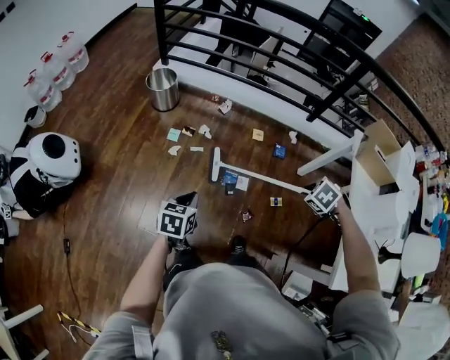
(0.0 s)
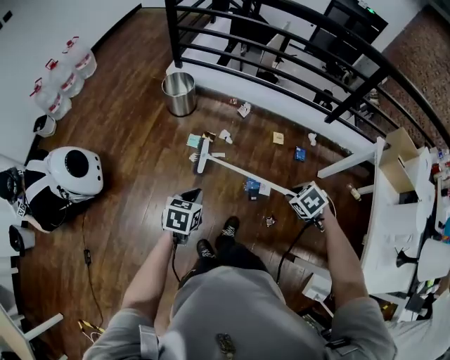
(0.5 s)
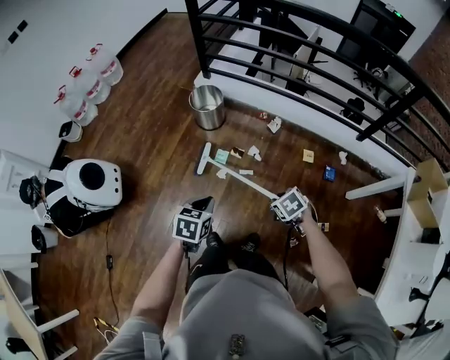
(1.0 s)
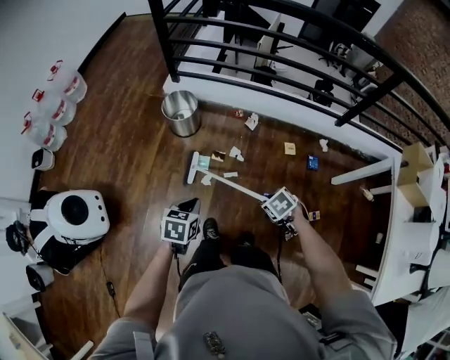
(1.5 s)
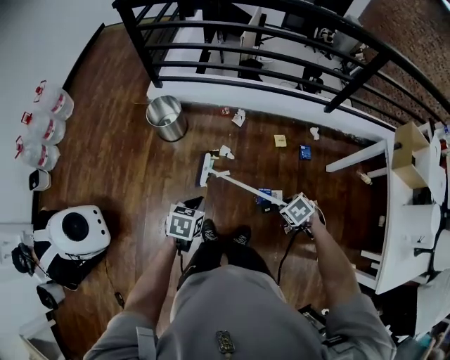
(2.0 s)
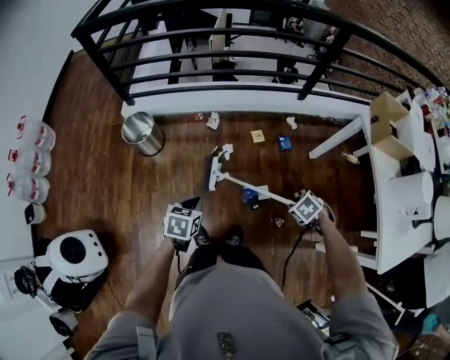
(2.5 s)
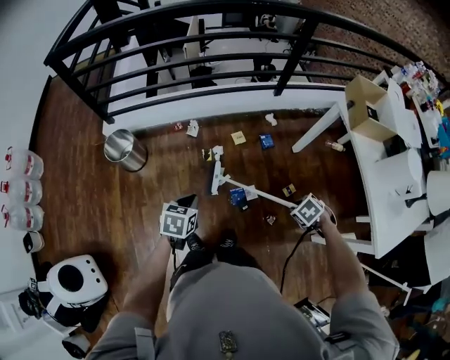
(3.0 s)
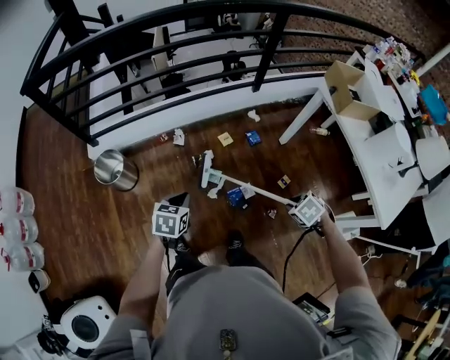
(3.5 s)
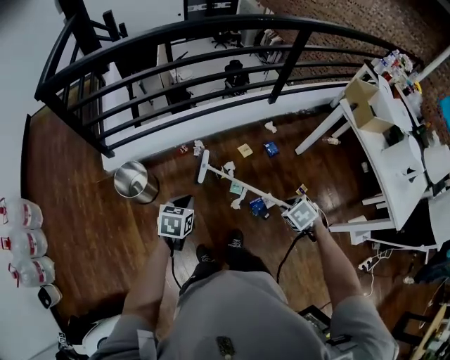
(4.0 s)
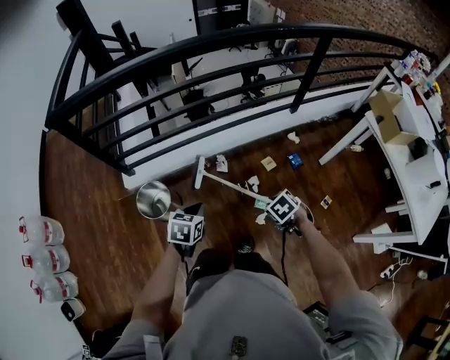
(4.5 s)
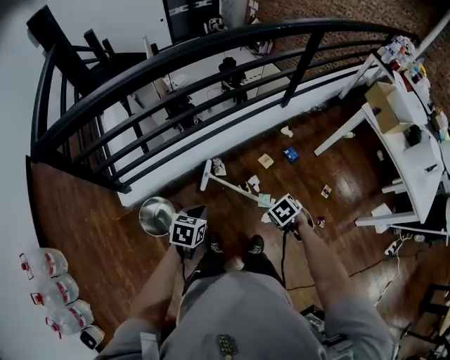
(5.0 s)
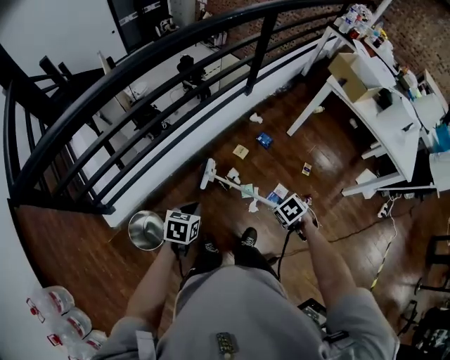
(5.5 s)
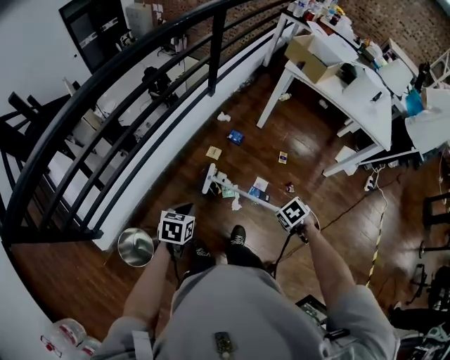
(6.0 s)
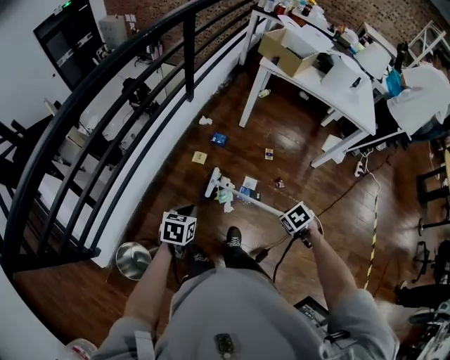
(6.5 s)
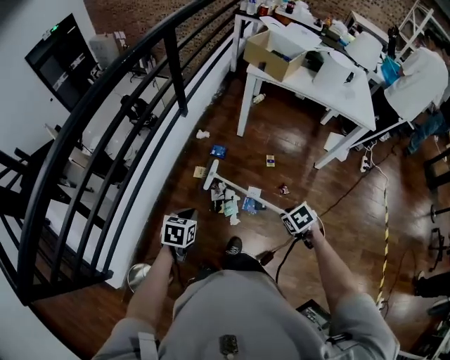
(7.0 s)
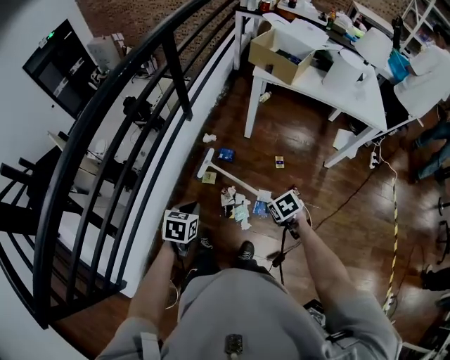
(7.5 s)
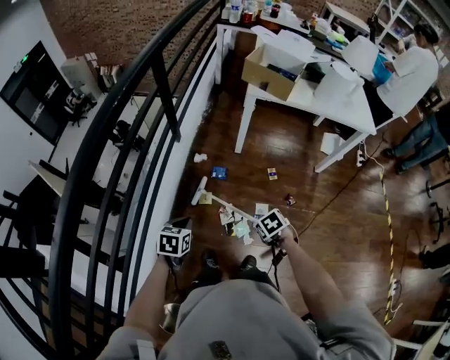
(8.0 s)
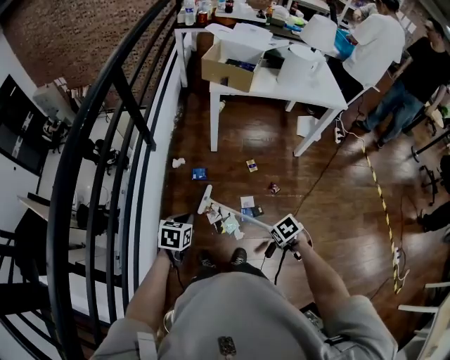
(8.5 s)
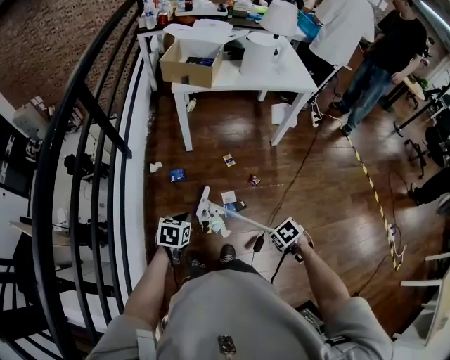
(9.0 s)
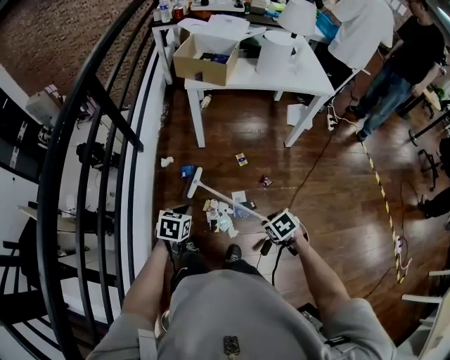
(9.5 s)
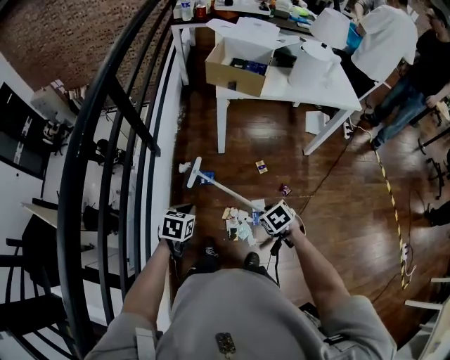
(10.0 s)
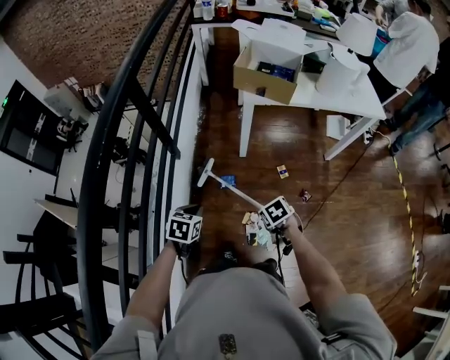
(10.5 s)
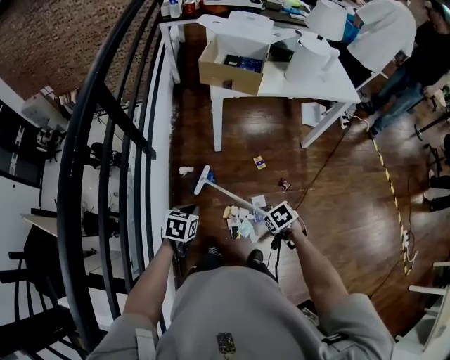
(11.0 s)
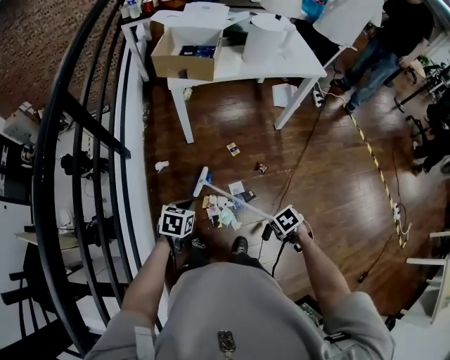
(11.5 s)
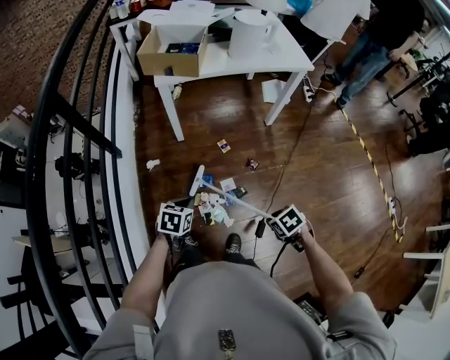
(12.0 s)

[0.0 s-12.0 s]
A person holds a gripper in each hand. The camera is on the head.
0.0 to 2.0 s: The left gripper shifts by about 30 cm.
2.0 to 4.0 s: The left gripper changes place by approximately 20 cm, and changes its angle by roughly 20 degrees.
4.0 to 6.0 s: The left gripper changes place by about 15 cm, and turns by some 40 degrees.
6.0 to 8.0 s: The left gripper shifts by about 30 cm.
8.0 to 10.0 s: The left gripper changes place by about 15 cm.
10.0 to 12.0 s: The left gripper moves some 15 cm.

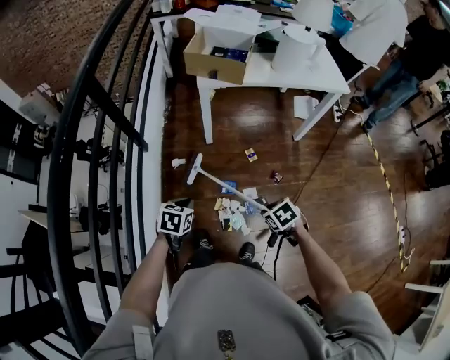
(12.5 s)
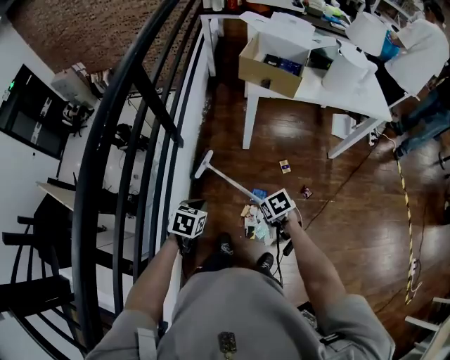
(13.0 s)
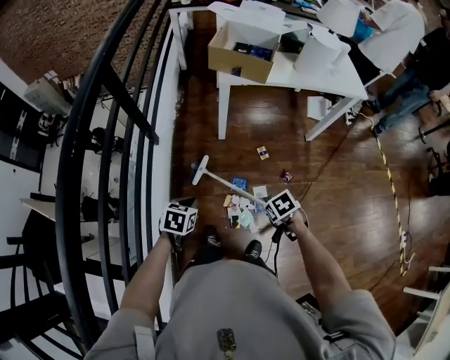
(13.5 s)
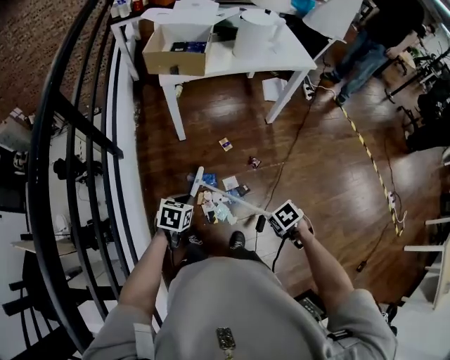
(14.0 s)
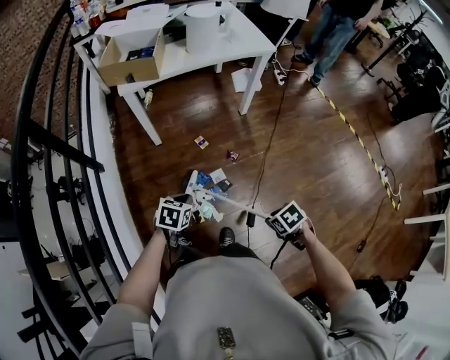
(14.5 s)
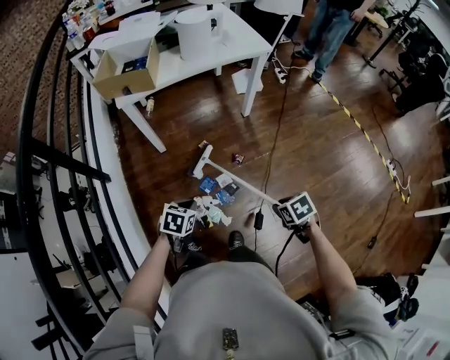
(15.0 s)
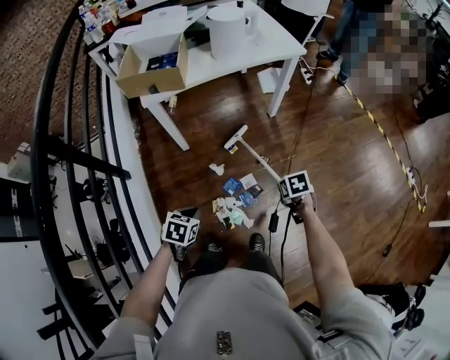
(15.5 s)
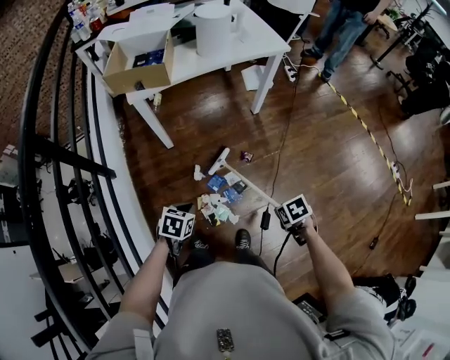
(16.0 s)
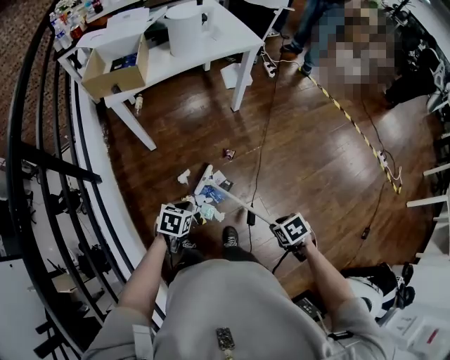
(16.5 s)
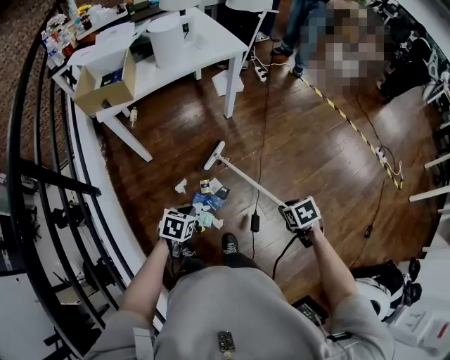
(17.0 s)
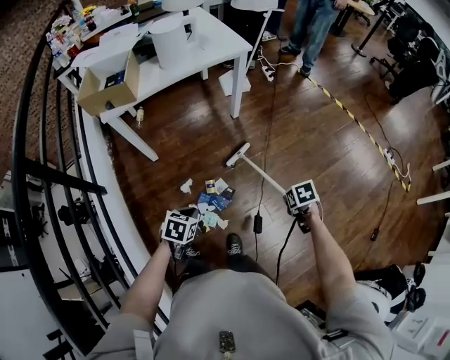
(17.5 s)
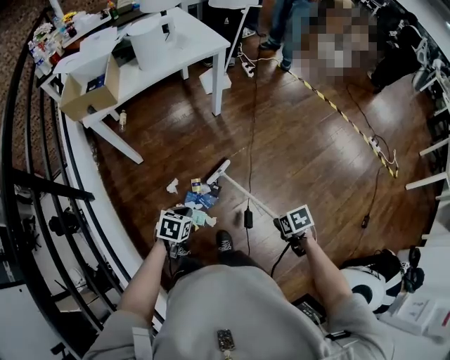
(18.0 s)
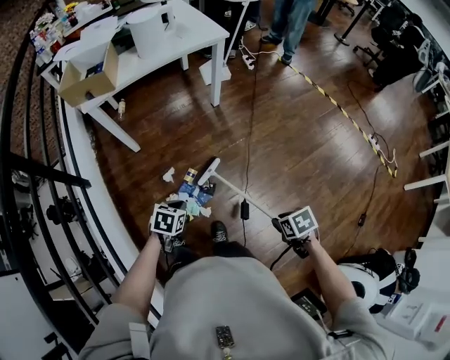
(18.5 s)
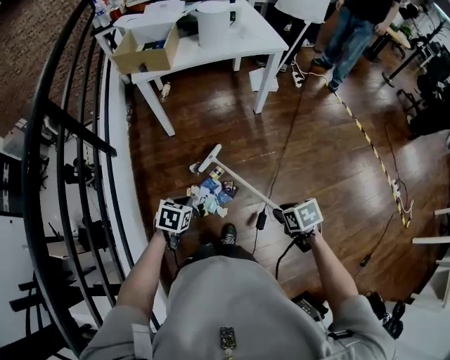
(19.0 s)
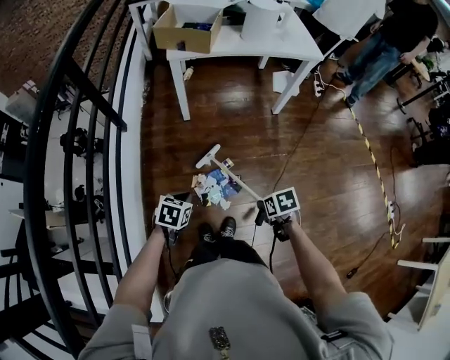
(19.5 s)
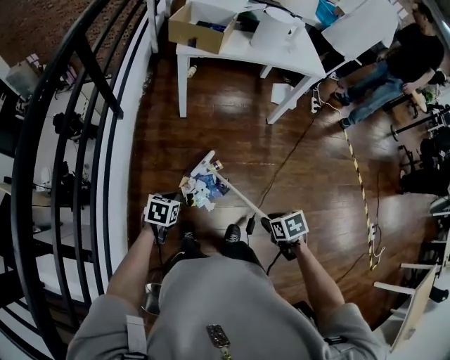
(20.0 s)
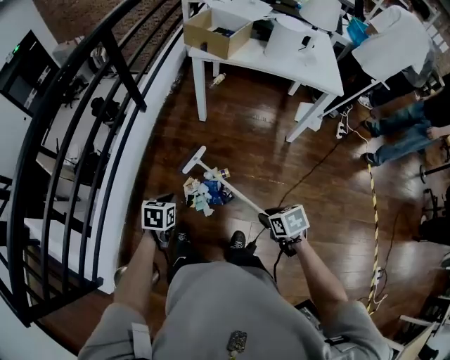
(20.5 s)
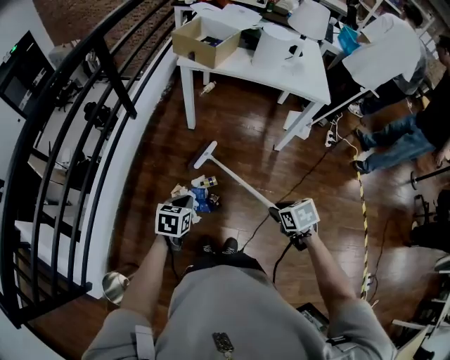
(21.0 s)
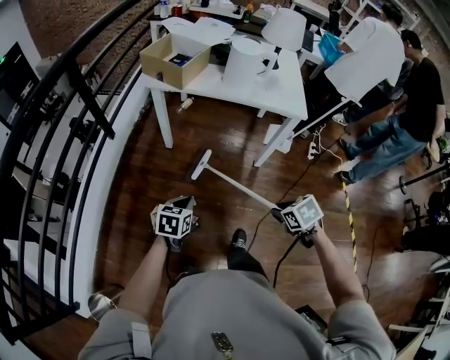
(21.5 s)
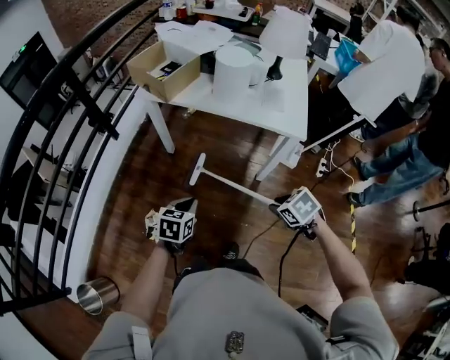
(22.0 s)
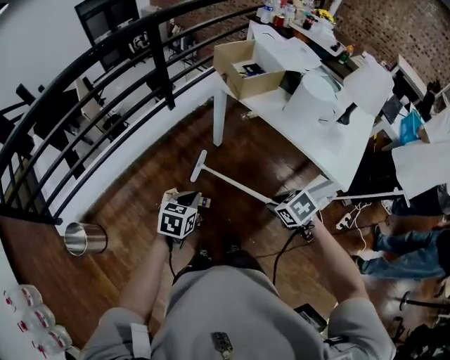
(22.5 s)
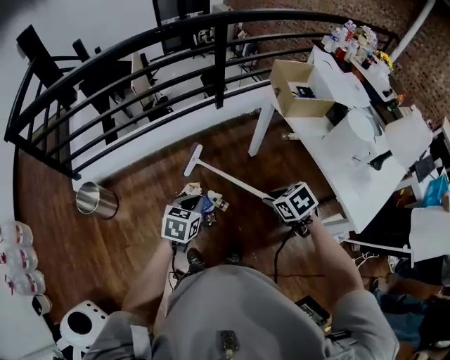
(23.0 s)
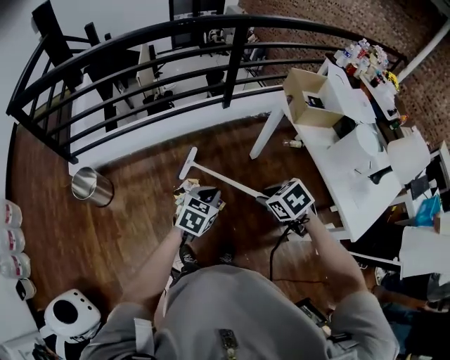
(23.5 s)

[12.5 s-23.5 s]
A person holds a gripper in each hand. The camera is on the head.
12.5 to 14.5 s: The left gripper shifts by approximately 20 cm, and swivels roughly 20 degrees.
14.5 to 16.0 s: The left gripper shifts by roughly 5 cm.
16.0 to 18.0 s: The left gripper changes place by some 15 cm.
18.0 to 20.0 s: The left gripper ends up about 20 cm from where it was, and swivels roughly 30 degrees.
20.0 to 21.5 s: The left gripper shifts by approximately 35 cm.
21.5 to 23.5 s: The left gripper moves upward, about 5 cm, and swivels some 40 degrees.

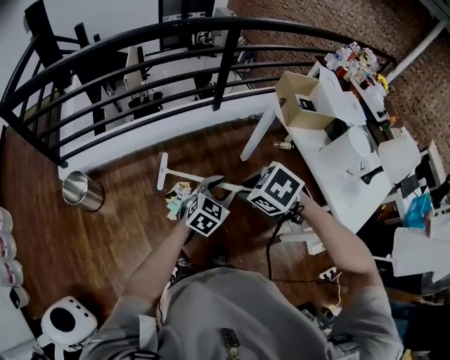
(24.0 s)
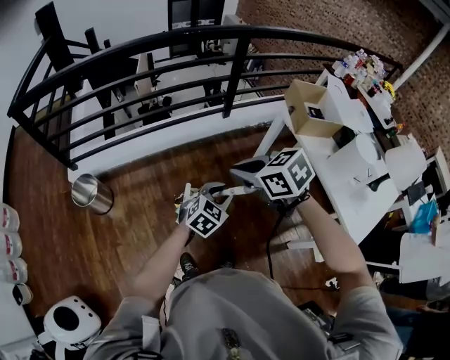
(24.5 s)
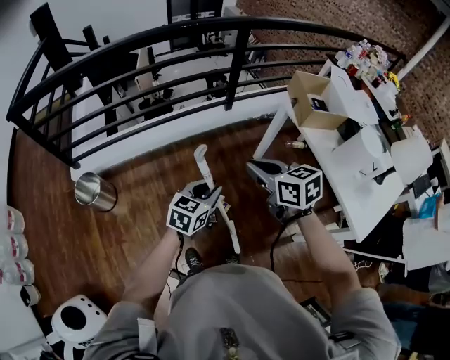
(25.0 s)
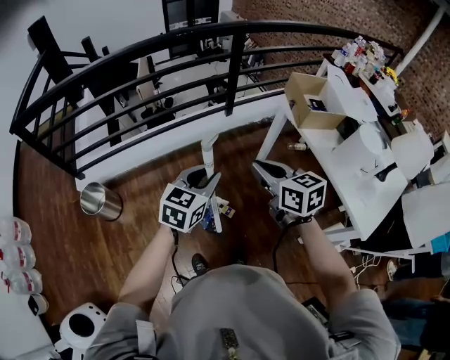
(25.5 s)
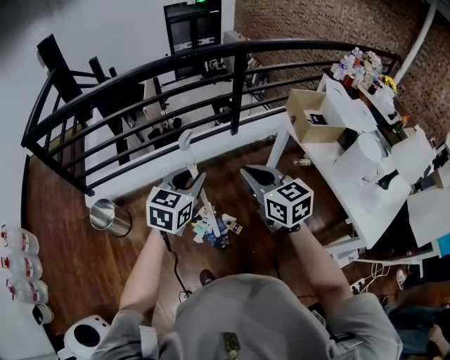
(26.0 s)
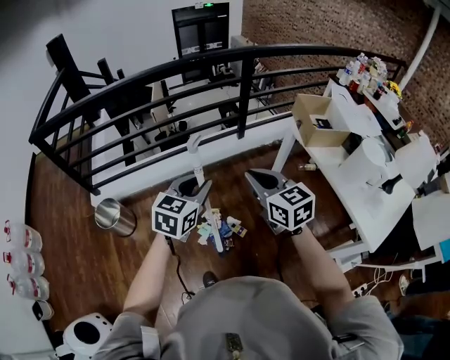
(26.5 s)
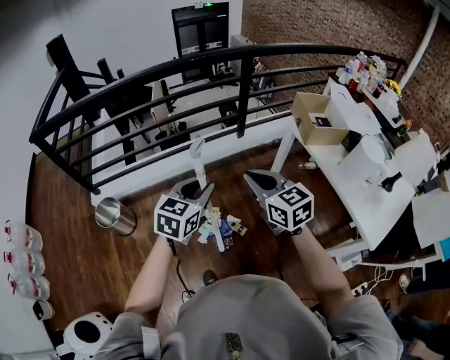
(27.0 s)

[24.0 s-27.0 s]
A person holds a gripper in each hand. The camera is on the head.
24.0 to 25.5 s: The left gripper heads upward, covering roughly 10 cm.
25.5 to 27.0 s: The left gripper changes place by about 5 cm.

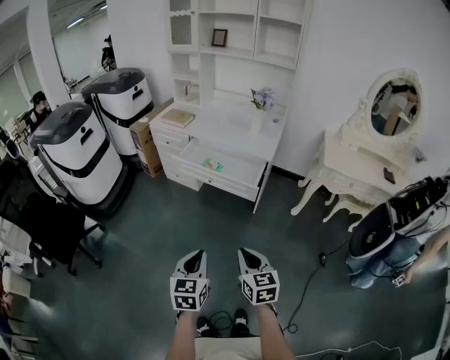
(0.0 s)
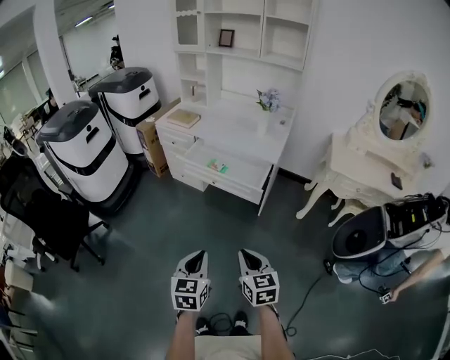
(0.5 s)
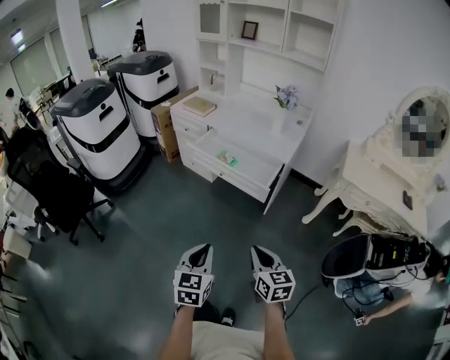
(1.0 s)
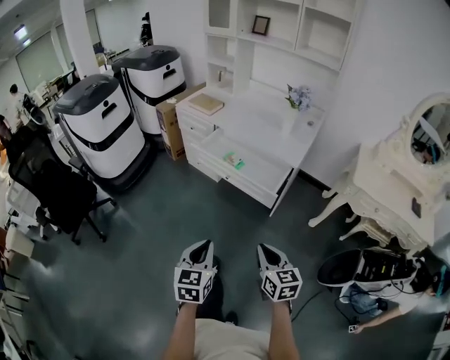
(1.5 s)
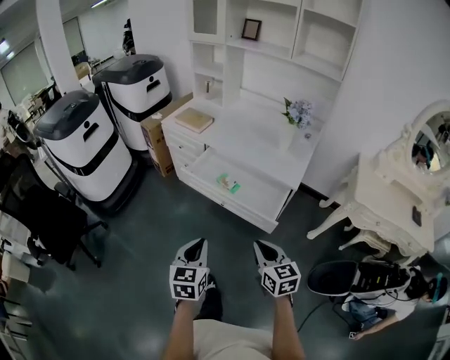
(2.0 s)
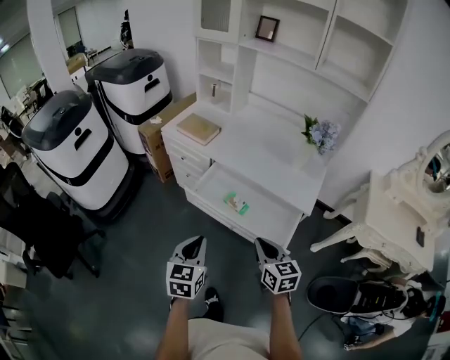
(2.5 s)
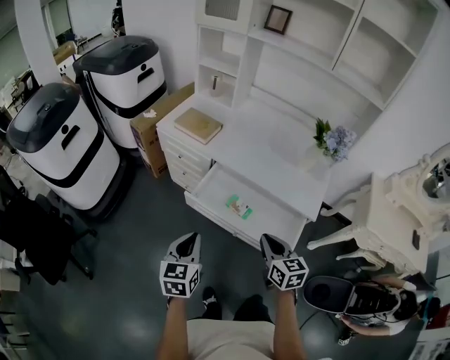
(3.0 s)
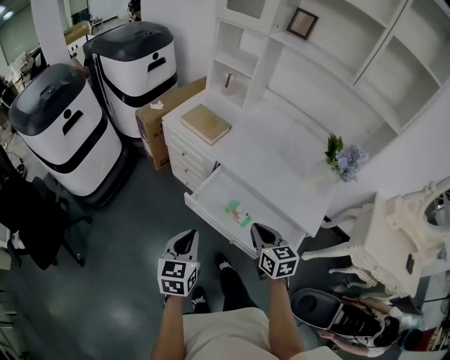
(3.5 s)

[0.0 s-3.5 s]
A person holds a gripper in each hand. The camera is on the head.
0.0 to 2.0 s: The two grippers go some 25 cm forward.
2.0 to 3.5 s: The grippers both shift forward by about 30 cm.
